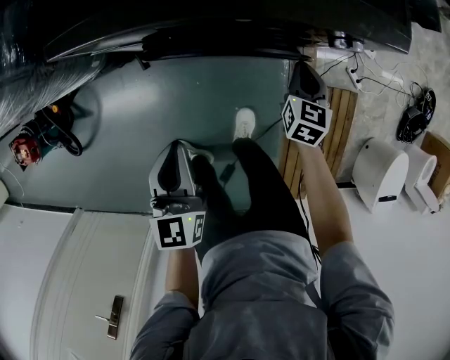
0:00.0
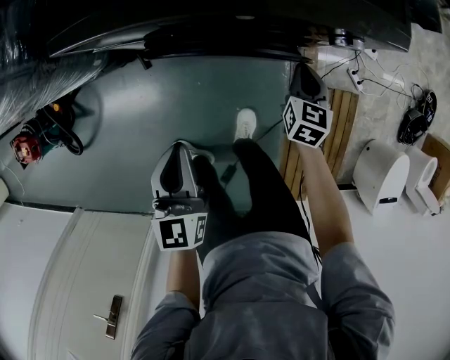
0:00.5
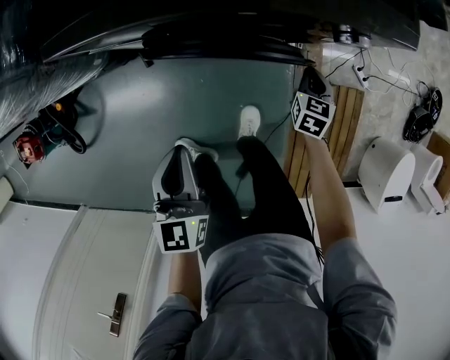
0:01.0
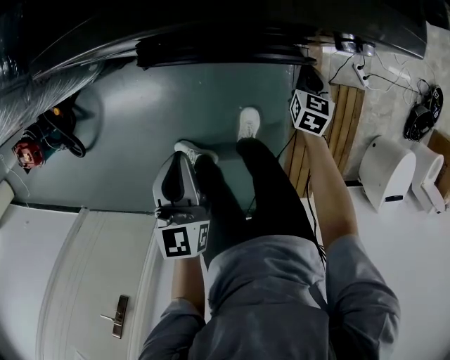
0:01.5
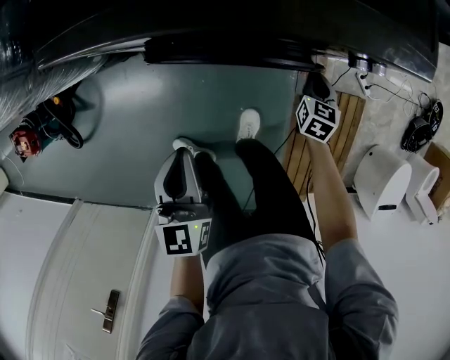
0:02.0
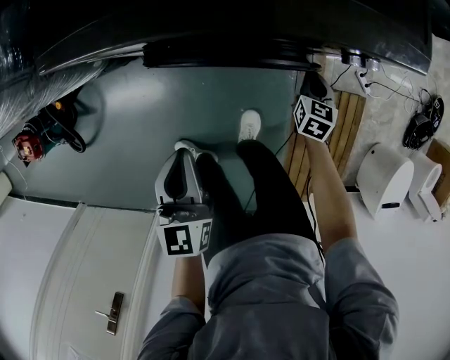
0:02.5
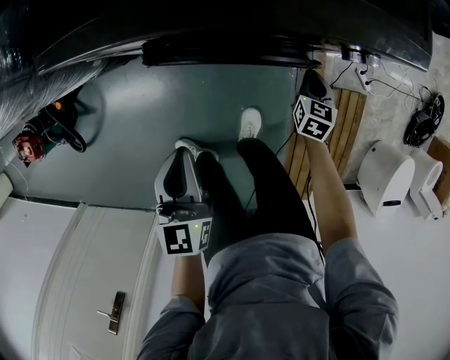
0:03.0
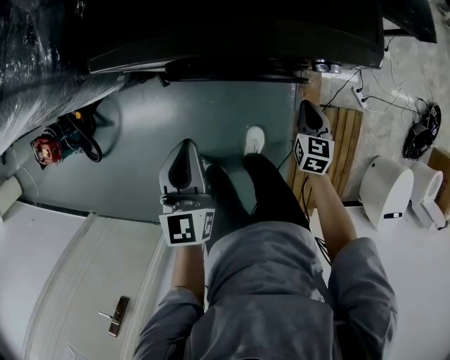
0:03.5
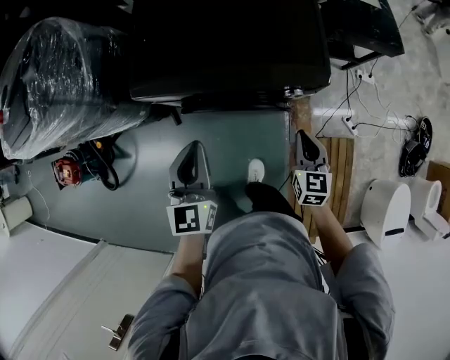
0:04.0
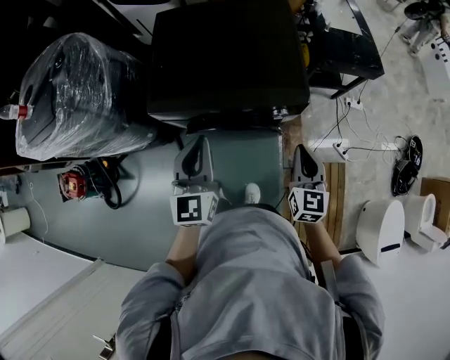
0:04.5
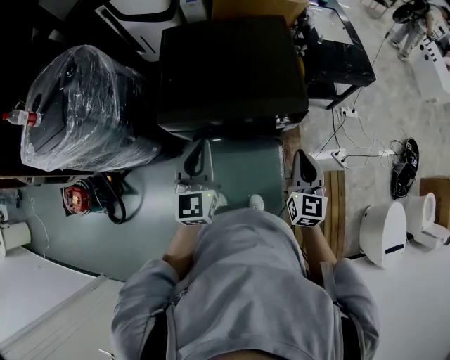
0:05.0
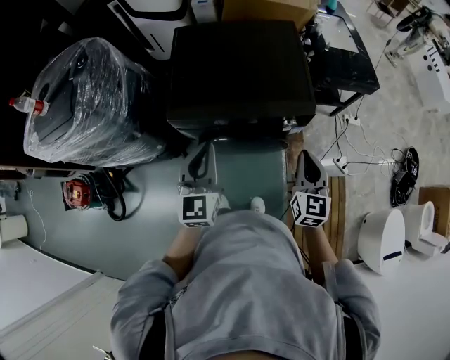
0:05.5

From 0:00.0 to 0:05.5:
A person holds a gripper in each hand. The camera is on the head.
From 0:00.0 to 0:02.0: The right gripper goes roughly 10 cm downward.
From 0:02.0 to 0:03.5: The two grippers go some 10 cm upward.
From 0:03.5 to 0:05.5: The right gripper shifts roughly 35 cm upward, and tips its fingers upward by roughly 30 degrees, while the left gripper moves upward, approximately 20 cm, and changes its angle by about 20 degrees.

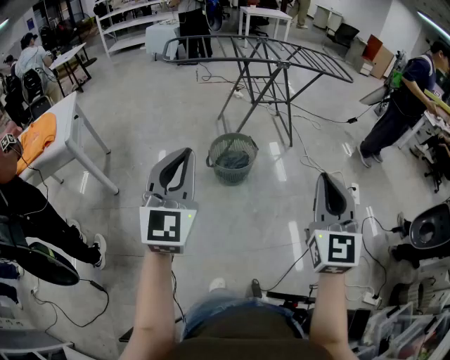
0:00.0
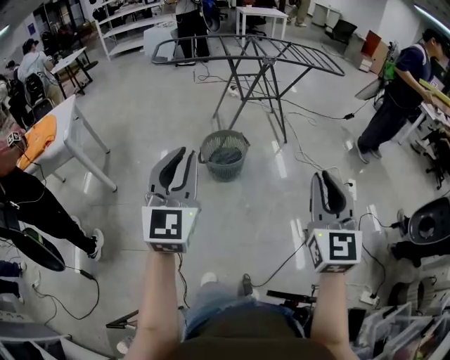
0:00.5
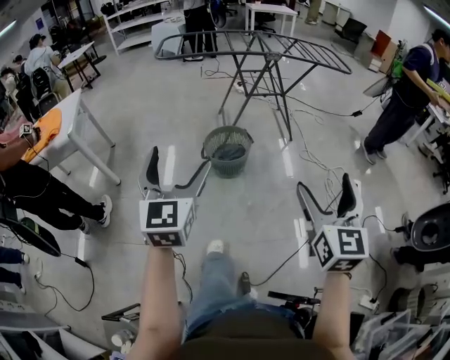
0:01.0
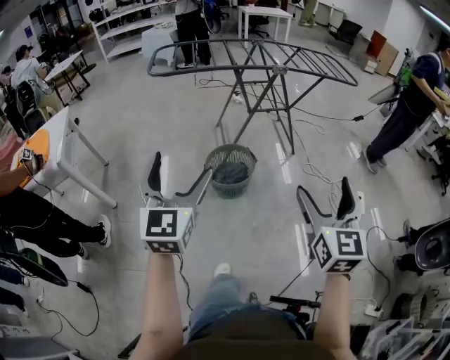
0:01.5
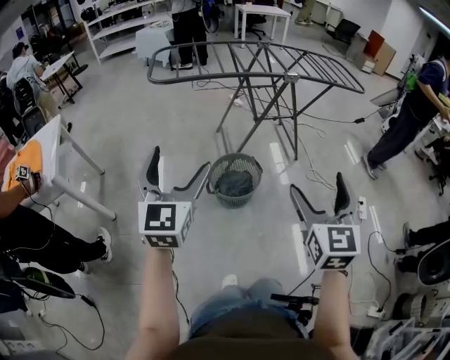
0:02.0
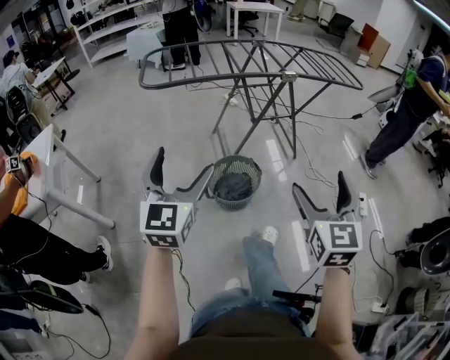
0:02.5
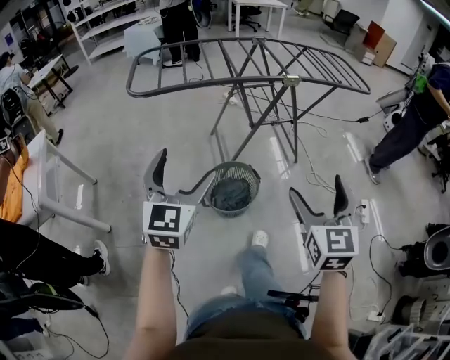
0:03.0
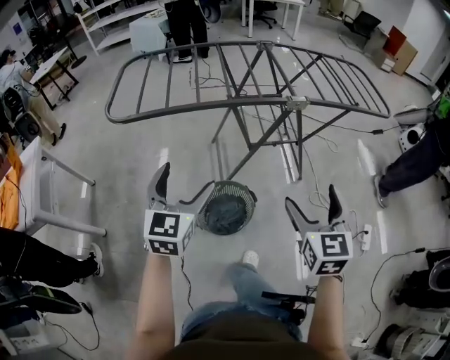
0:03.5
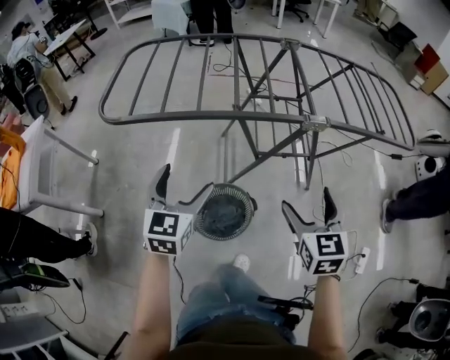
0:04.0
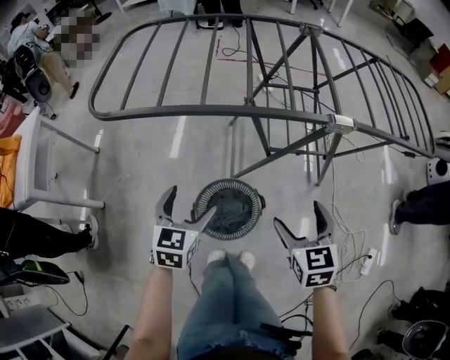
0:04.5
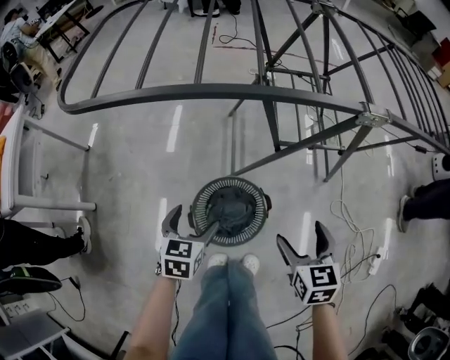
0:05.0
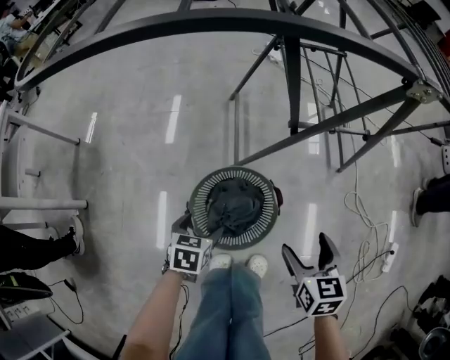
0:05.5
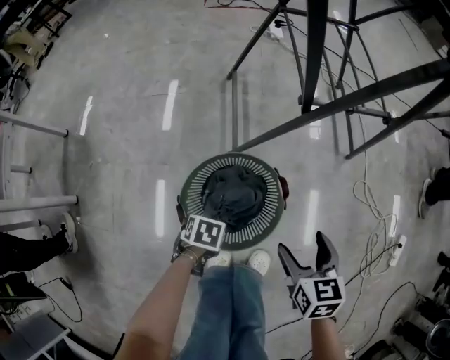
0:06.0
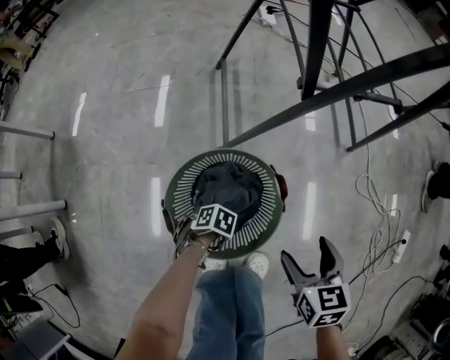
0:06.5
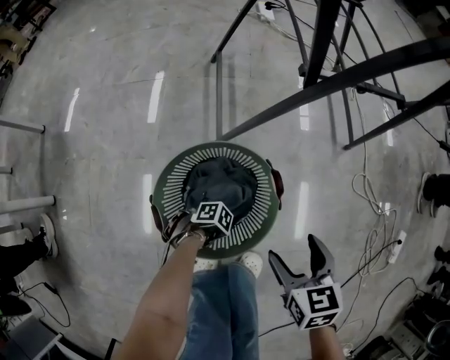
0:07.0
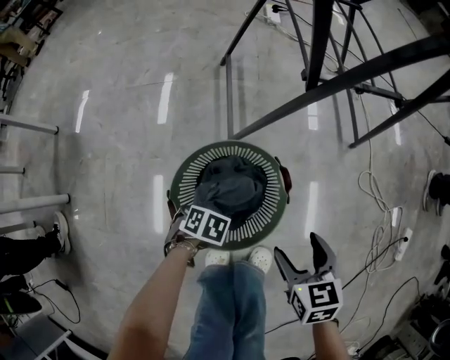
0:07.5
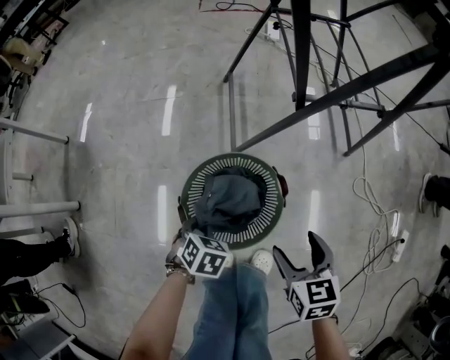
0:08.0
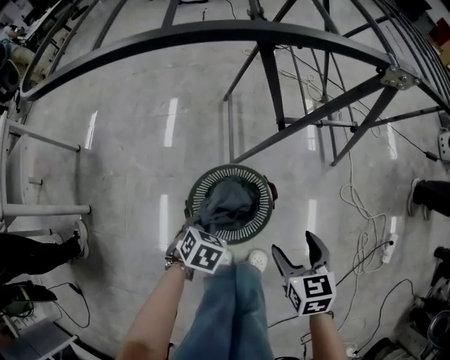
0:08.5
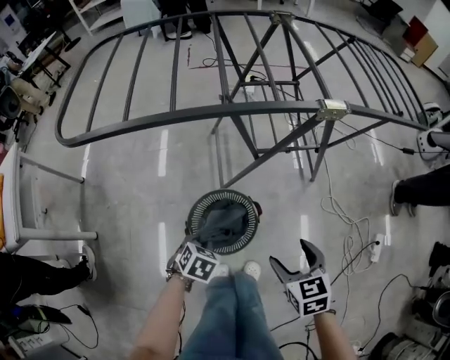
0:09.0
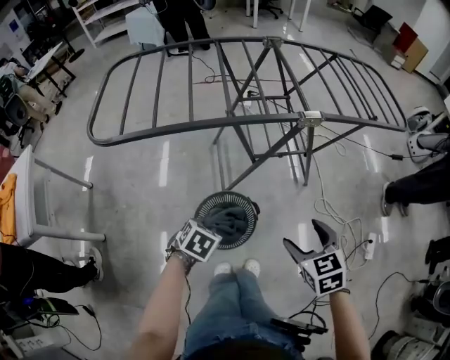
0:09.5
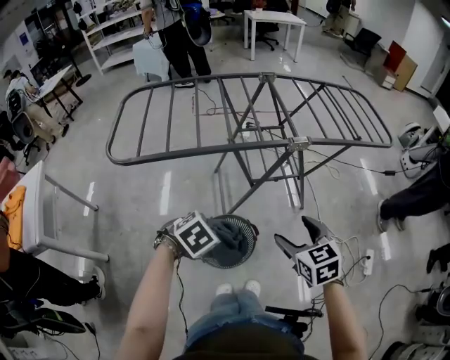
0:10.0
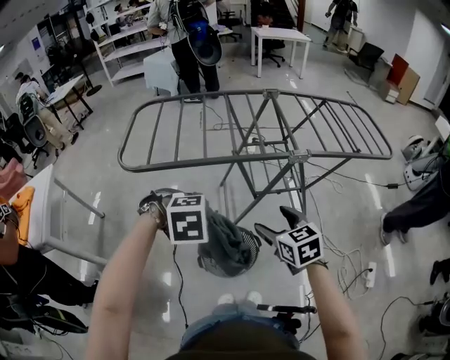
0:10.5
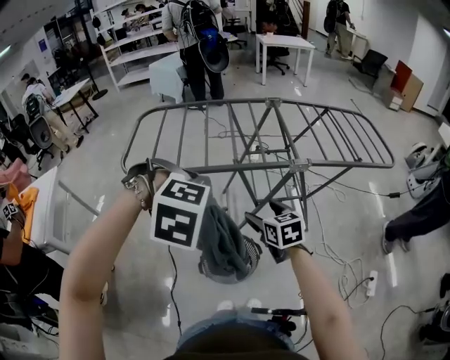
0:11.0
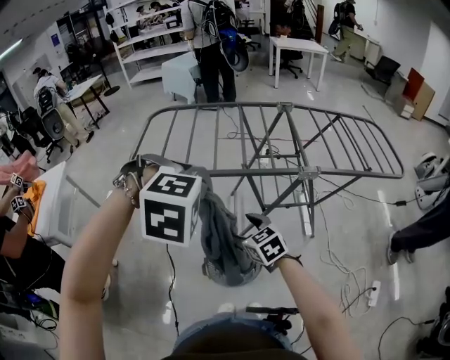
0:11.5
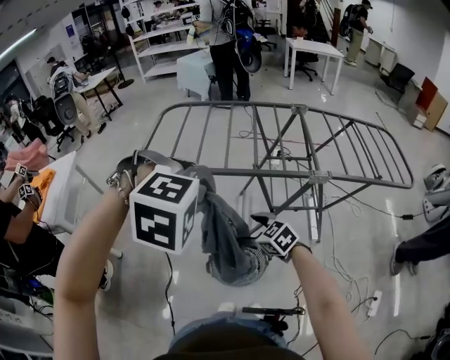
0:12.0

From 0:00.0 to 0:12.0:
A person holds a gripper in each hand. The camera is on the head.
From 0:00.0 to 0:02.0: Both grippers move forward, about 20 cm. The right gripper opens up, while the left gripper opens its fingers.
From 0:02.0 to 0:04.0: The pair of grippers is taken forward, about 40 cm. The left gripper swivels some 20 degrees, while the right gripper swivels some 20 degrees.
From 0:04.0 to 0:06.0: Both grippers move downward, some 50 cm. The left gripper tips its fingers downward by some 60 degrees, and closes its fingers, while the right gripper rotates roughly 30 degrees.
From 0:06.0 to 0:08.0: The left gripper reaches approximately 15 cm downward, then returns, changes its angle by about 30 degrees, and closes its fingers, while the right gripper reaches some 5 cm downward, then returns.
From 0:08.0 to 0:10.0: The grippers both shift upward by about 50 cm. The left gripper changes its angle by about 40 degrees.
From 0:10.0 to 0:12.0: The left gripper moves upward, roughly 25 cm, and twists roughly 50 degrees clockwise, seen from behind, while the right gripper ends up about 20 cm from where it was, and rotates roughly 40 degrees.

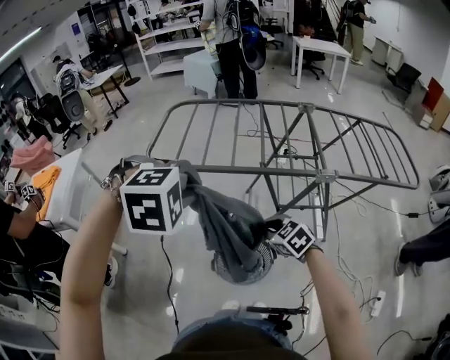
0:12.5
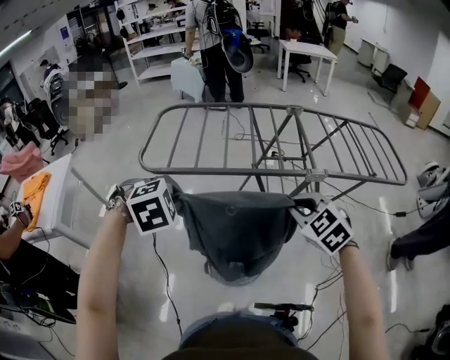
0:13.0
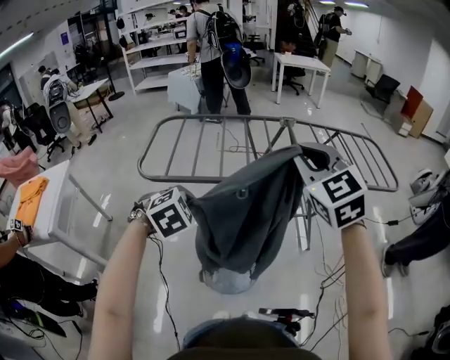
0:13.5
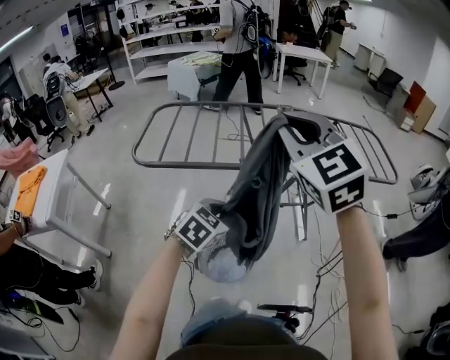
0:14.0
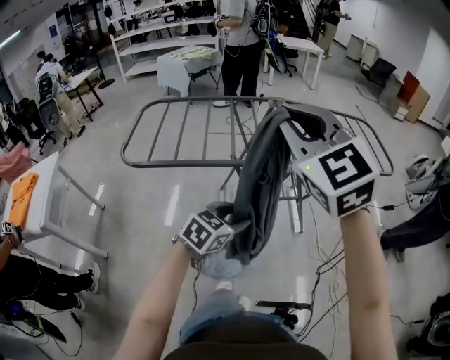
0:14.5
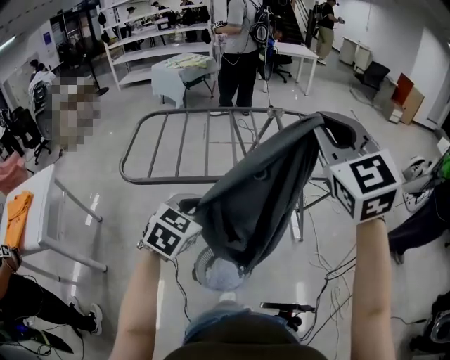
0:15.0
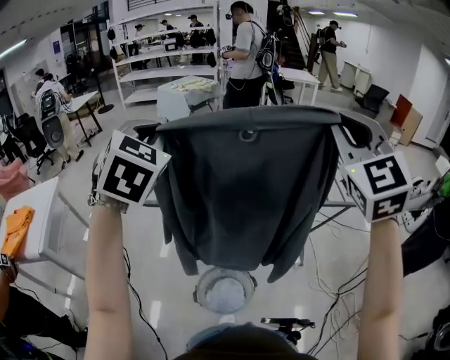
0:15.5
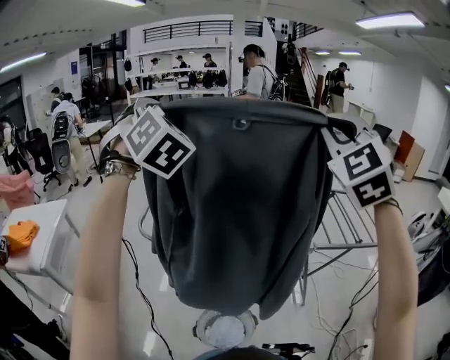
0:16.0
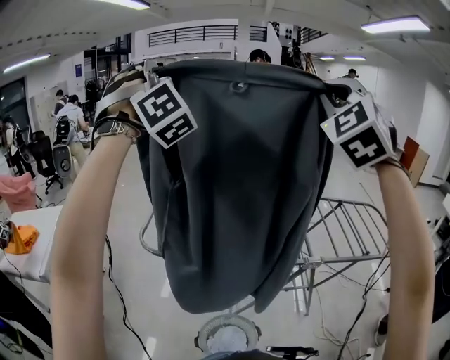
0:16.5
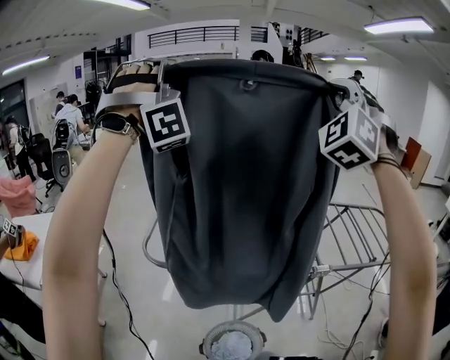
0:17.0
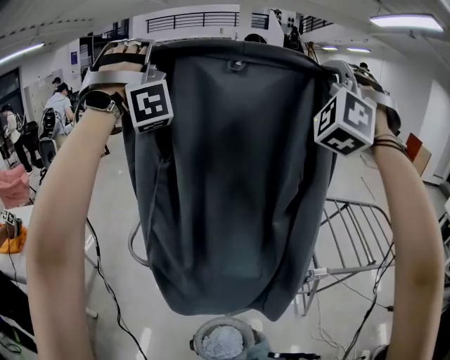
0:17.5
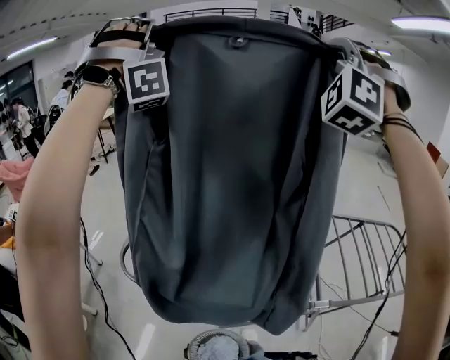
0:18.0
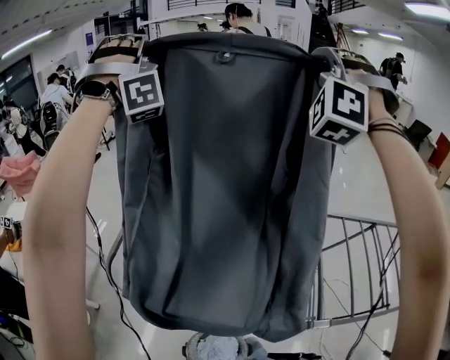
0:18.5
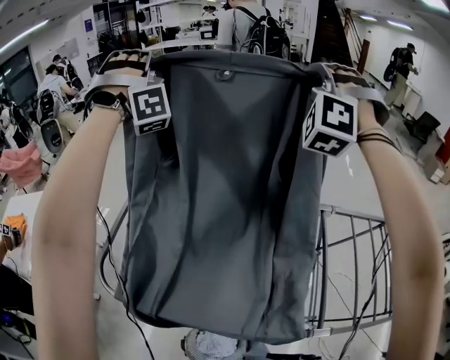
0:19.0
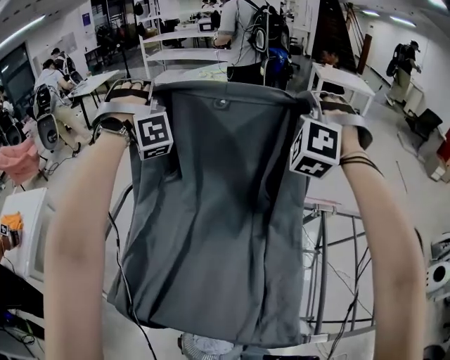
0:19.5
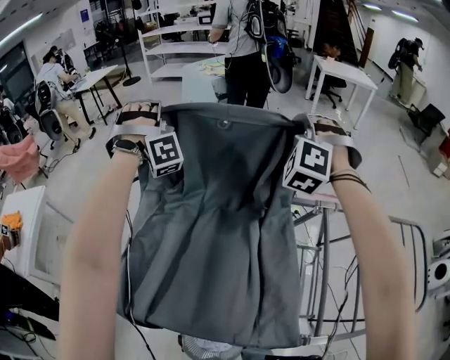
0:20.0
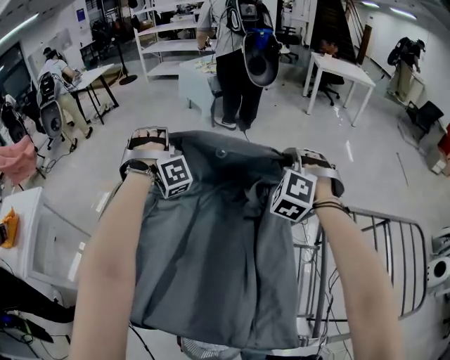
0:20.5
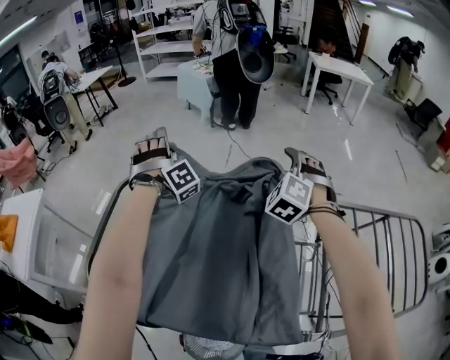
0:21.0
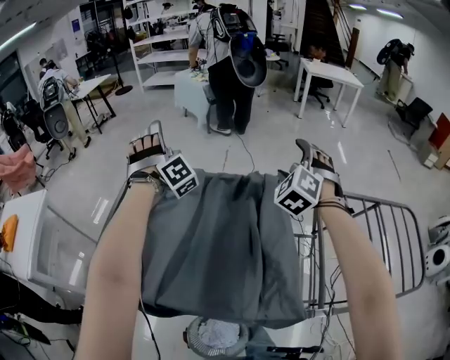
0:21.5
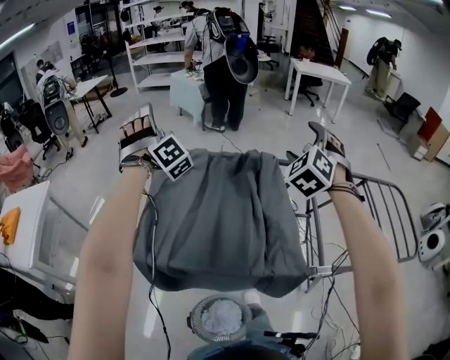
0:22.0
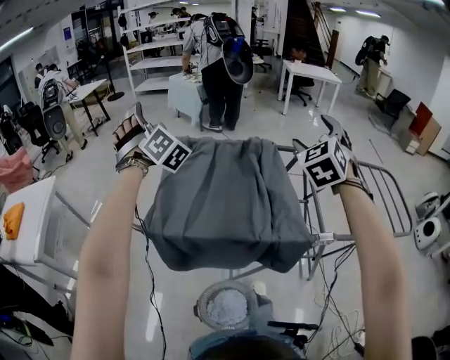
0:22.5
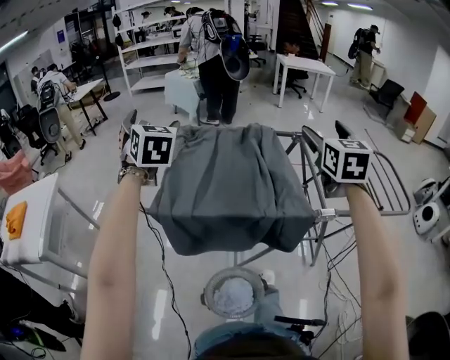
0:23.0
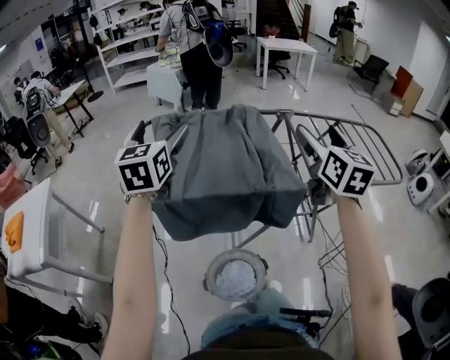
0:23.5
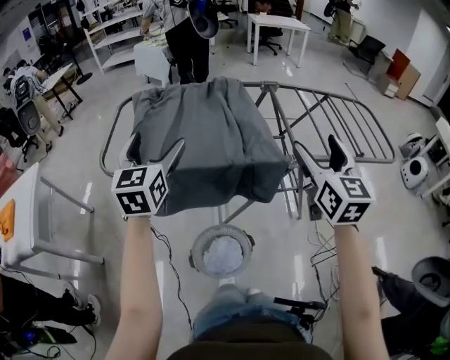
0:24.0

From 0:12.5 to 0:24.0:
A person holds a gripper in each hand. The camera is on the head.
From 0:12.5 to 0:14.5: The left gripper shifts by roughly 20 cm, changes its angle by some 60 degrees, and opens. The right gripper travels upward by about 40 cm, and tilts its fingers about 40 degrees upward.
From 0:14.5 to 0:16.5: The left gripper moves upward, roughly 60 cm, tips its fingers upward by roughly 50 degrees, and closes. Meanwhile the right gripper moves upward, about 25 cm, and turns by about 40 degrees.
From 0:16.5 to 0:18.5: Both grippers move forward, some 35 cm. The right gripper changes its angle by about 30 degrees. The left gripper turns by approximately 40 degrees.
From 0:18.5 to 0:20.0: Both grippers move downward, approximately 30 cm. The right gripper changes its angle by some 30 degrees. The left gripper swivels approximately 30 degrees.
From 0:20.0 to 0:22.0: The right gripper travels backward by approximately 20 cm, turns by approximately 30 degrees, and opens. The left gripper goes approximately 20 cm backward and to the left, rotates approximately 30 degrees, and opens up.
From 0:22.0 to 0:24.0: The grippers both shift backward by approximately 40 cm. The left gripper rolls counterclockwise, seen from behind, by some 70 degrees, while the right gripper rotates around the line of its fingers by about 60 degrees, clockwise from behind.
